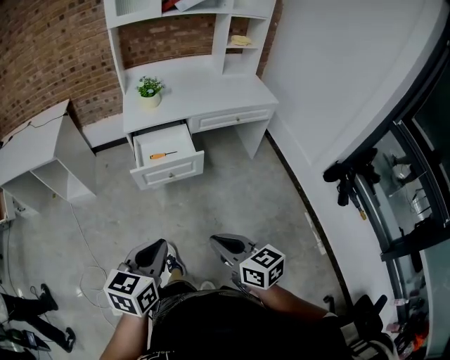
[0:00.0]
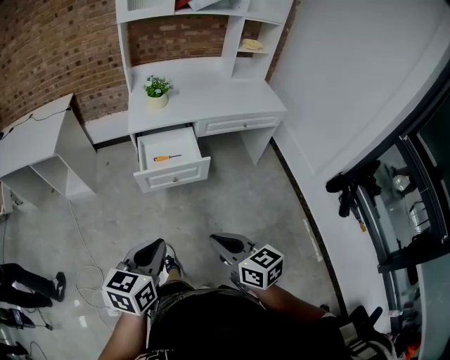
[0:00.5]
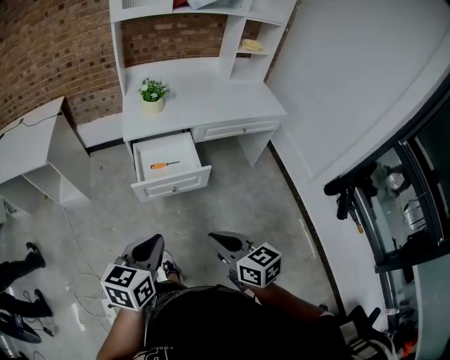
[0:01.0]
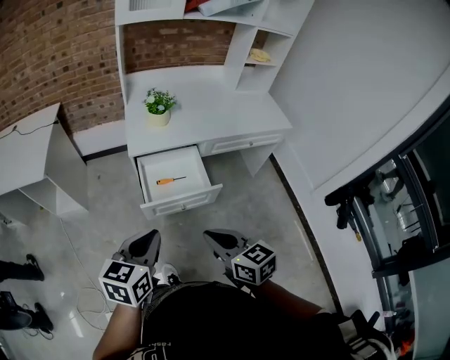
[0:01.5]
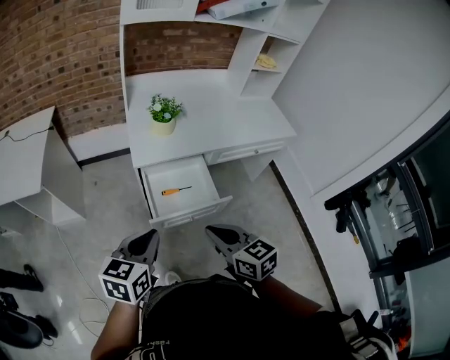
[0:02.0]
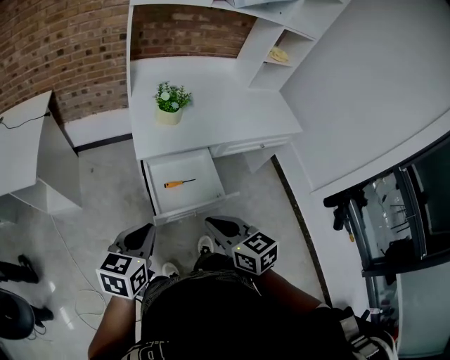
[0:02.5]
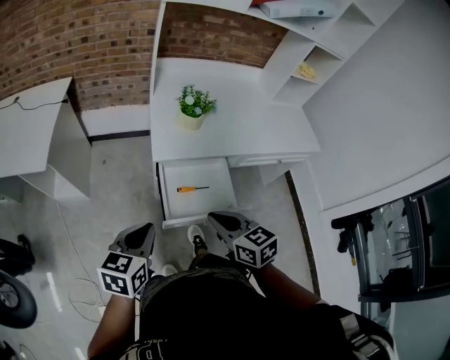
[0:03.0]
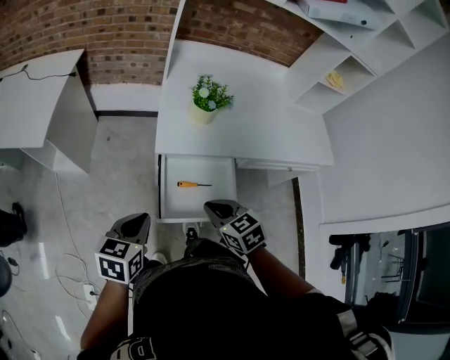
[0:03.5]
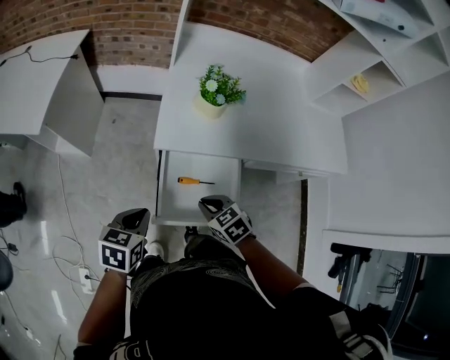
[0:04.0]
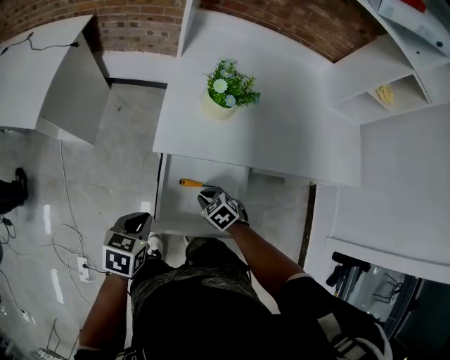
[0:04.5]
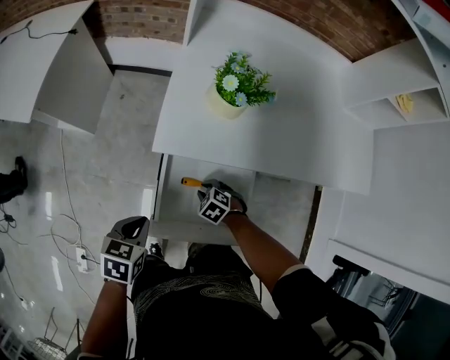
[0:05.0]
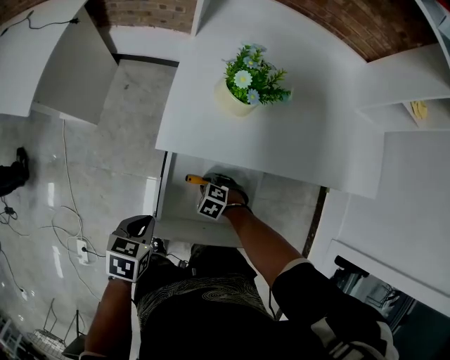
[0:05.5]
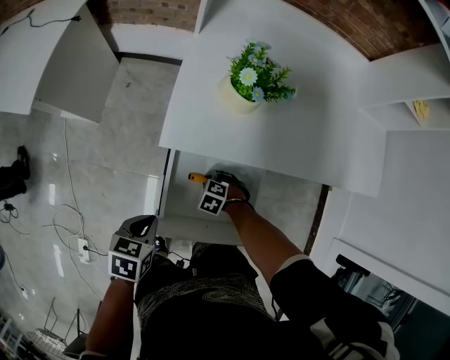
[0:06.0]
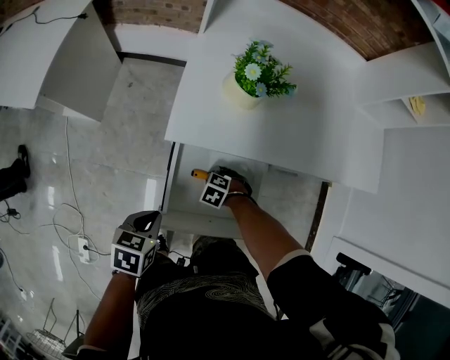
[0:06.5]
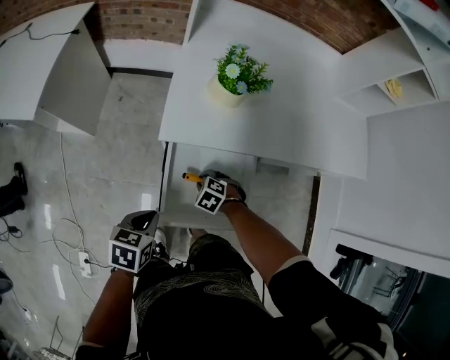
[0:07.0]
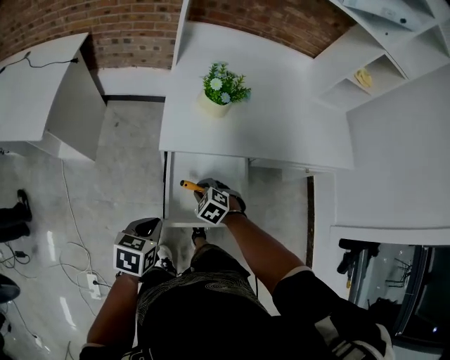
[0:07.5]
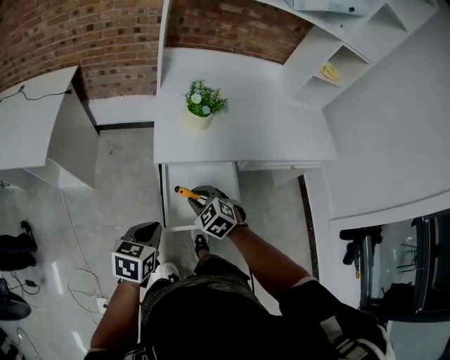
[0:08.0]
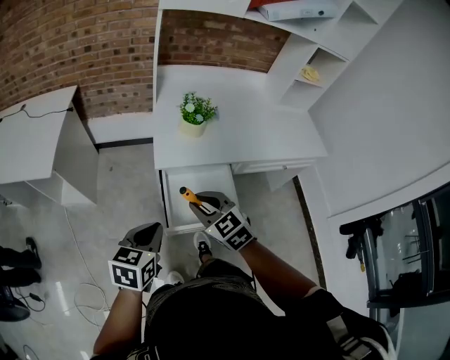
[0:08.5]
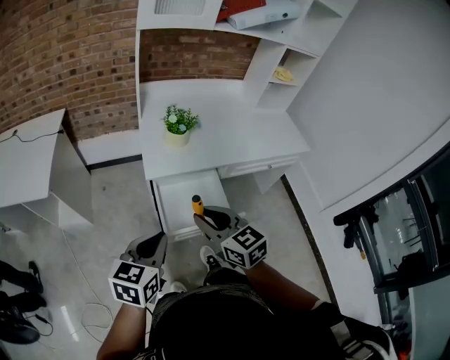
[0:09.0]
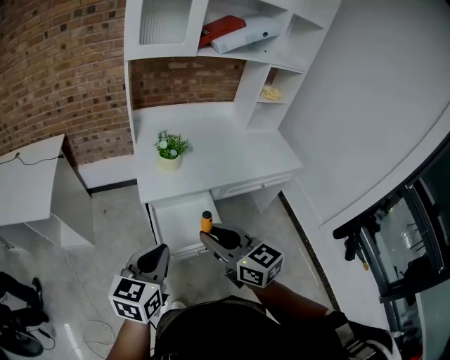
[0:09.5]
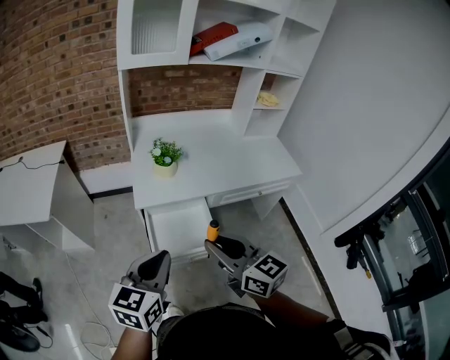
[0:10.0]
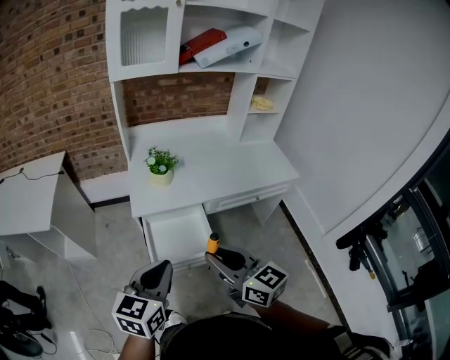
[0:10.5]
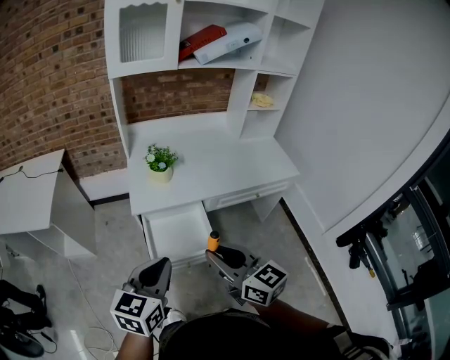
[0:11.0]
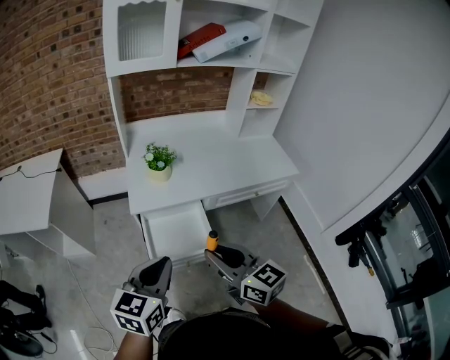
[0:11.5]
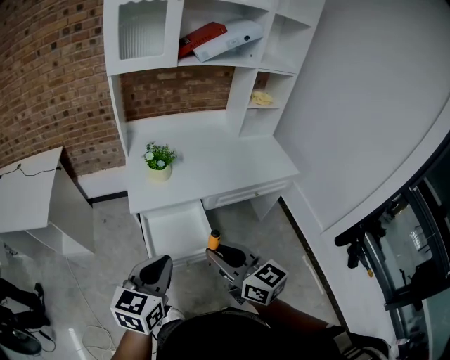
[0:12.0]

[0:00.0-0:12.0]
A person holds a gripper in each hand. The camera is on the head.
0:00.0 to 0:02.0: The two grippers go roughly 35 cm forward and to the left.
0:02.0 to 0:04.0: The two grippers go approximately 25 cm downward and forward. The right gripper rotates about 40 degrees, while the left gripper turns by about 30 degrees.
0:04.0 to 0:06.0: The right gripper moves downward, approximately 25 cm, and rotates approximately 40 degrees, while the left gripper shifts roughly 10 cm downward.
0:06.0 to 0:08.0: The right gripper is displaced upward by about 25 cm, and tilts its fingers approximately 30 degrees upward; the left gripper goes about 15 cm upward, and rotates roughly 20 degrees.
0:08.0 to 0:10.0: The left gripper goes roughly 25 cm upward, to the right and backward, and changes its angle by approximately 30 degrees. Meanwhile the right gripper goes approximately 35 cm upward and backward, and points its fingers roughly 40 degrees further upward.
0:10.0 to 0:12.0: There are only small adjustments of the grippers.

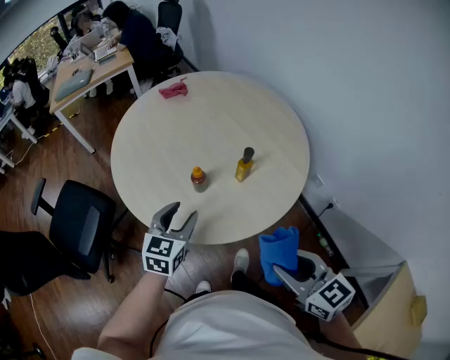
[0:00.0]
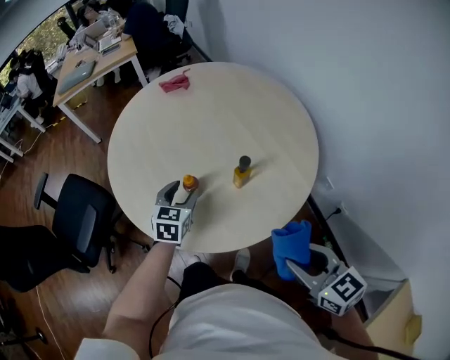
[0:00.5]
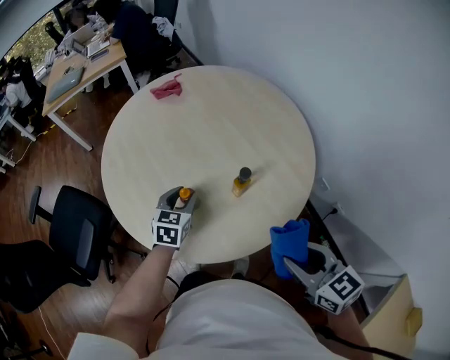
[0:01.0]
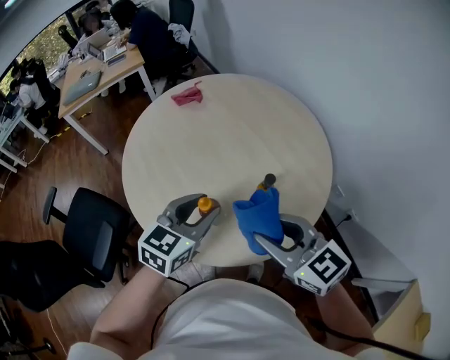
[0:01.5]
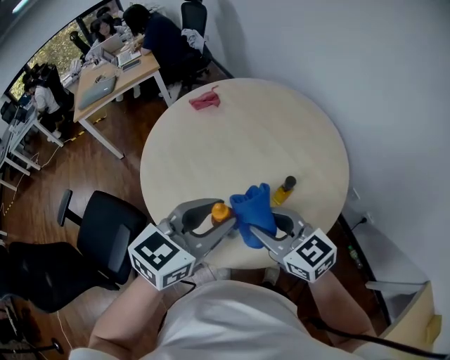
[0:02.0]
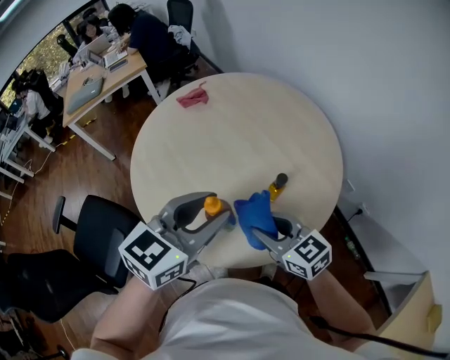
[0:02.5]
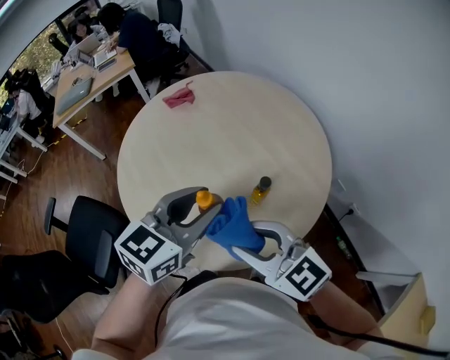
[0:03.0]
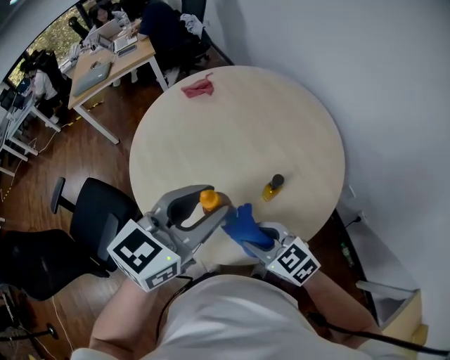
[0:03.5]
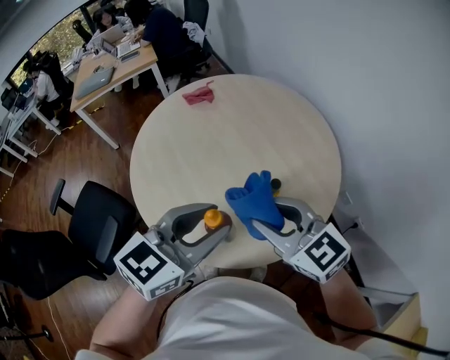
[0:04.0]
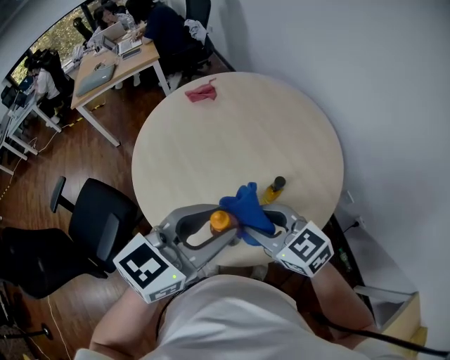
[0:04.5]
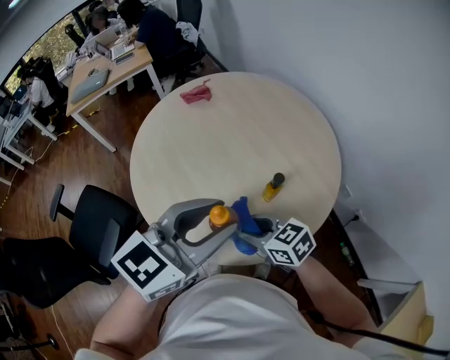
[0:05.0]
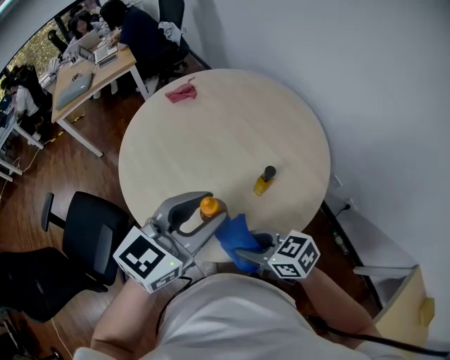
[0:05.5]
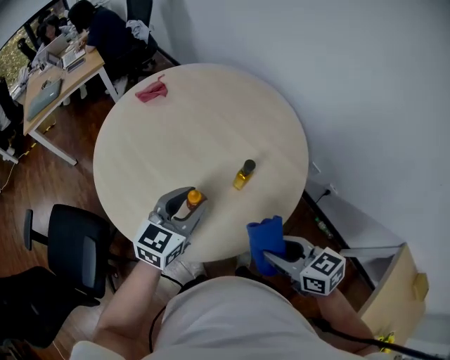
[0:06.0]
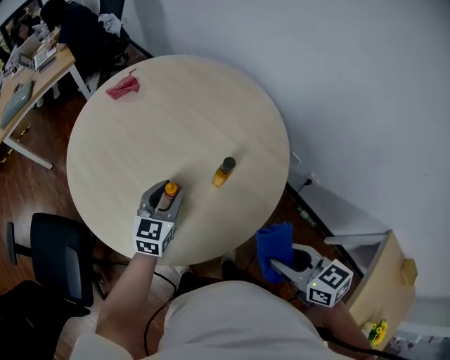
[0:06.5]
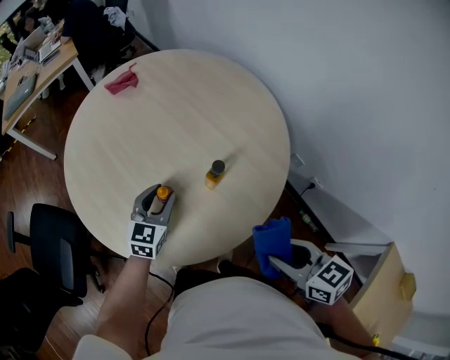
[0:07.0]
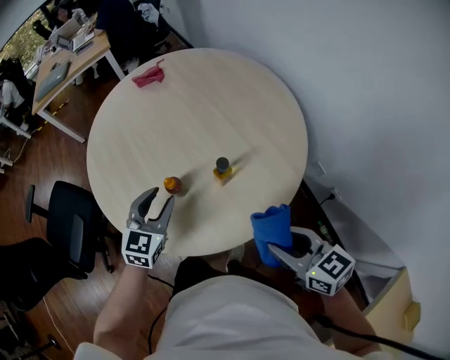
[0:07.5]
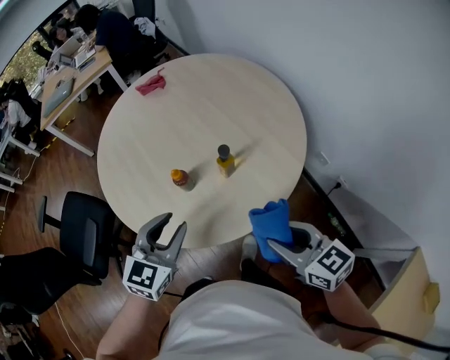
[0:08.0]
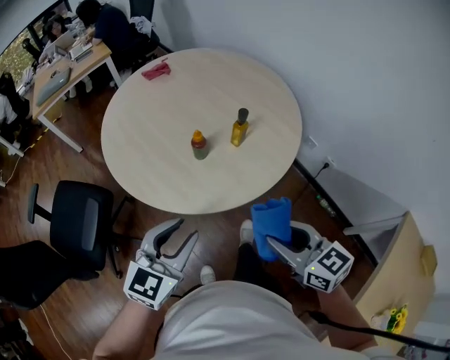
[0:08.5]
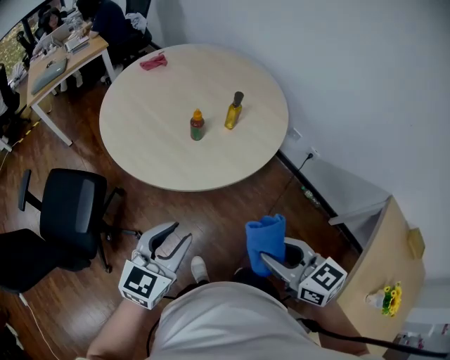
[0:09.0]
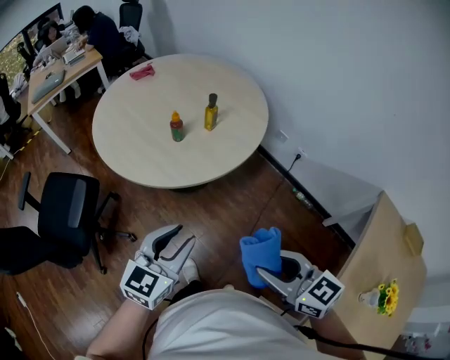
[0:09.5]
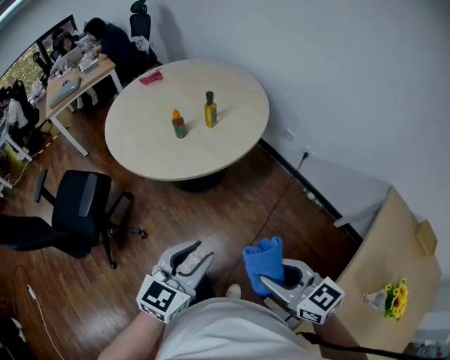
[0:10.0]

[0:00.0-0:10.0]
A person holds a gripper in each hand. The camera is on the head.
0:00.0 to 0:02.0: The right gripper moves forward and to the left, approximately 25 cm, while the left gripper shifts about 15 cm upward, and changes its angle by about 20 degrees.
0:02.0 to 0:04.0: The right gripper goes up and down, about 15 cm each way, reversing 3 times.
0:04.0 to 0:06.0: The left gripper travels downward and forward by approximately 15 cm. Meanwhile the right gripper heads backward and downward, covering some 15 cm, and changes its angle by some 40 degrees.
0:06.0 to 0:08.0: The right gripper is displaced to the right by about 10 cm; the left gripper is displaced backward by roughly 10 cm.
0:08.0 to 0:10.0: Both grippers are carried backward, about 40 cm.

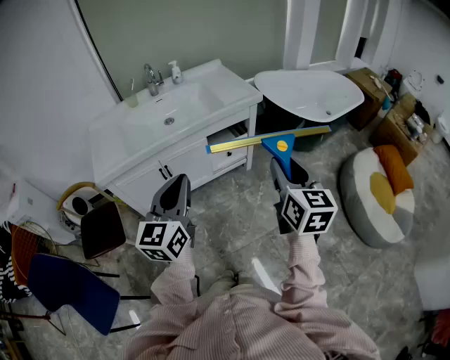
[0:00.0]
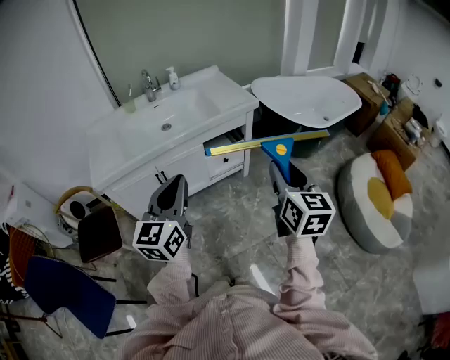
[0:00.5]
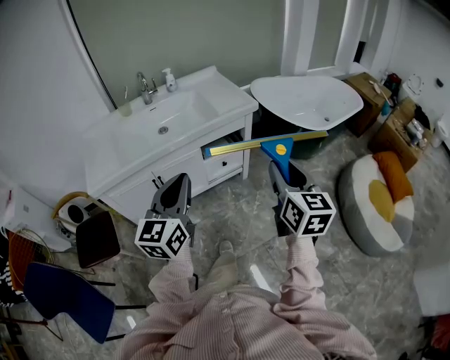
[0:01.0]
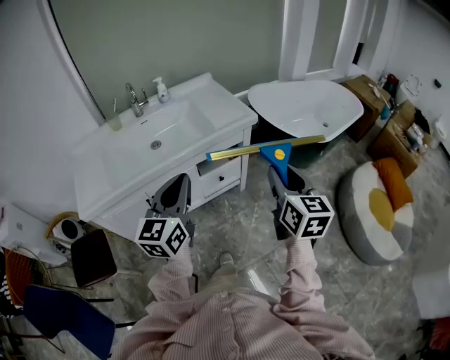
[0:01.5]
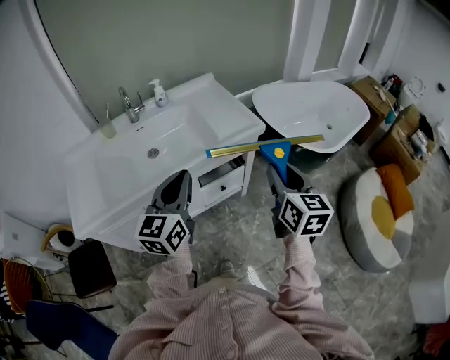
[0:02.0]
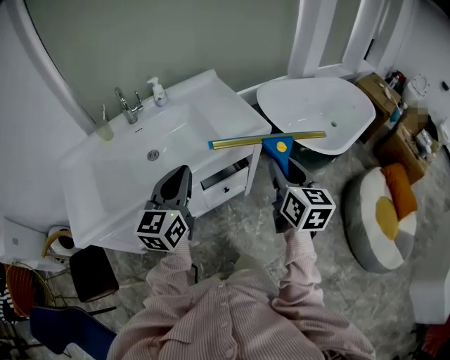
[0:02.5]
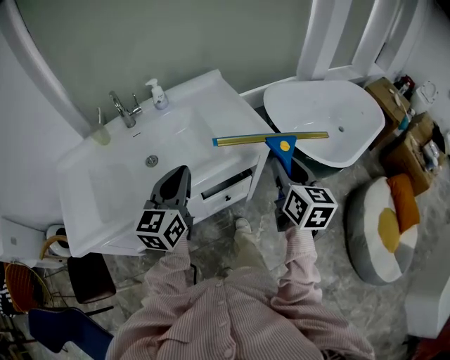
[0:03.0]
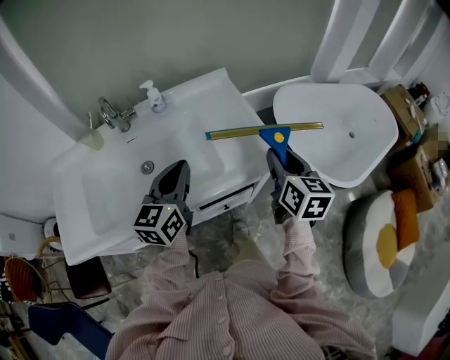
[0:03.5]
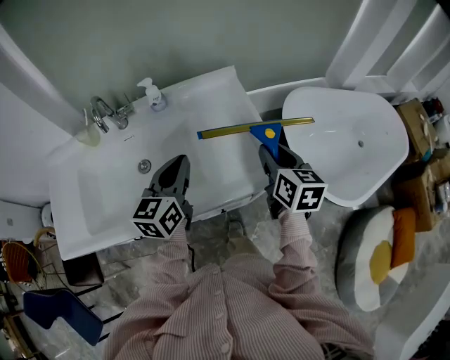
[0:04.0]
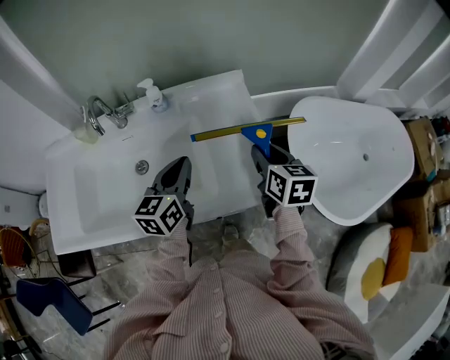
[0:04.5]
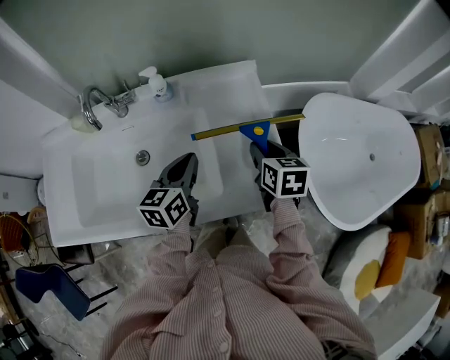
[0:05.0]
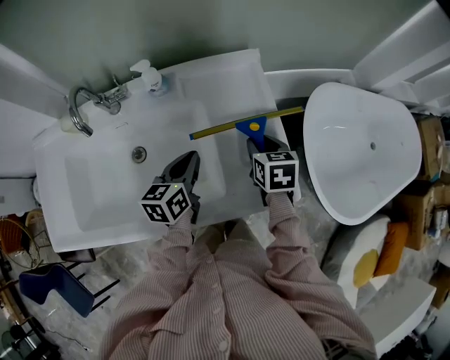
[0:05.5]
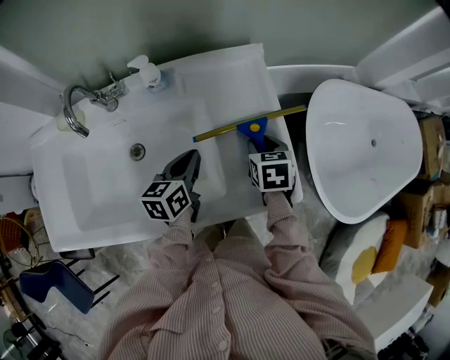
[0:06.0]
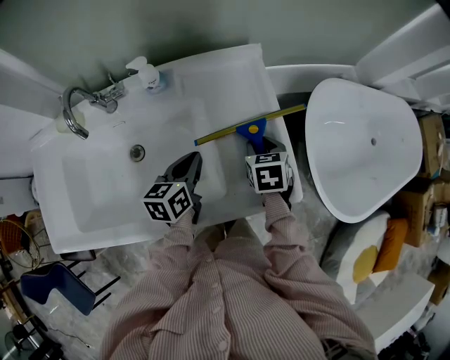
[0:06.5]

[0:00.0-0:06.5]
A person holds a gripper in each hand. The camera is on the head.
0:00.0 to 0:02.0: Both grippers travel together forward, about 30 cm.
0:02.0 to 0:04.5: Both grippers move forward, some 40 cm. The left gripper swivels roughly 20 degrees; the right gripper changes its angle by some 30 degrees.
0:04.5 to 0:06.5: The left gripper goes about 10 cm downward. The right gripper is displaced downward and forward by some 15 cm, and rotates some 30 degrees.
